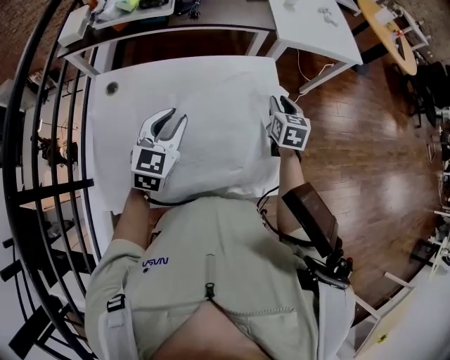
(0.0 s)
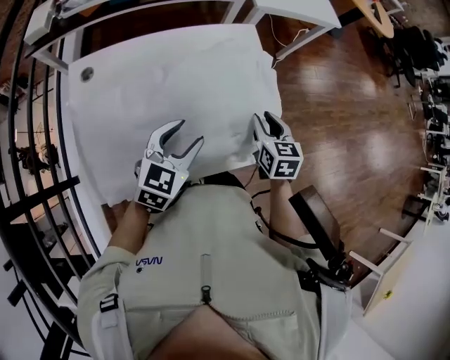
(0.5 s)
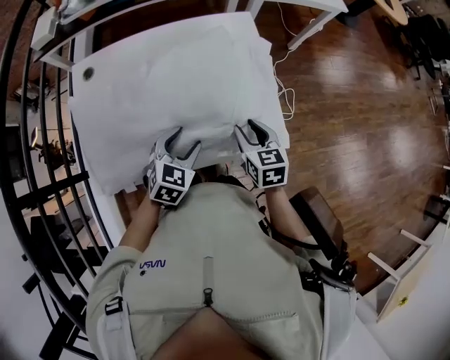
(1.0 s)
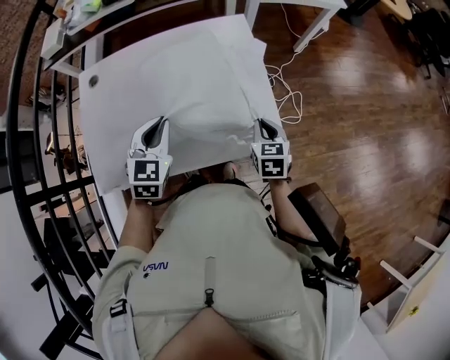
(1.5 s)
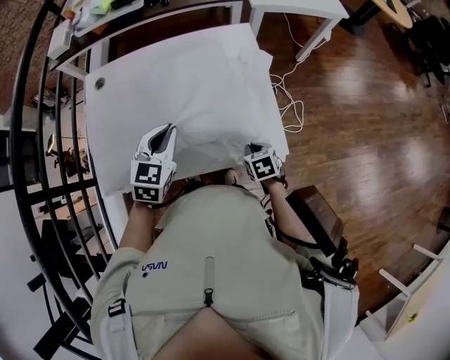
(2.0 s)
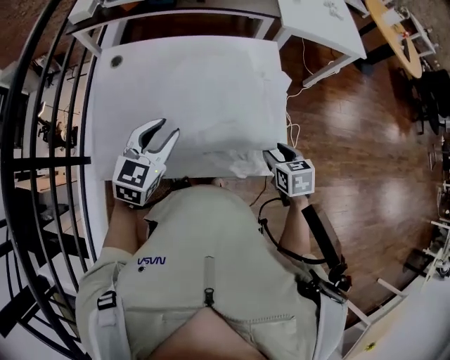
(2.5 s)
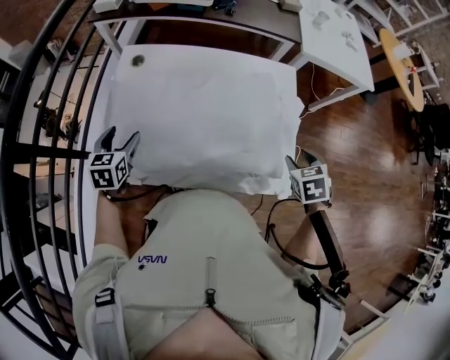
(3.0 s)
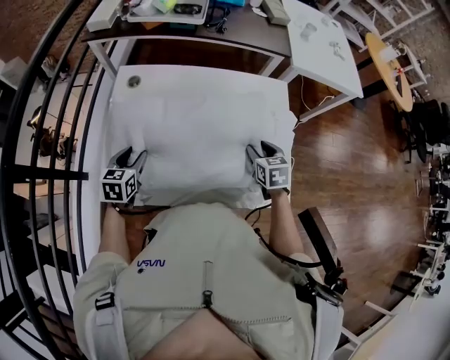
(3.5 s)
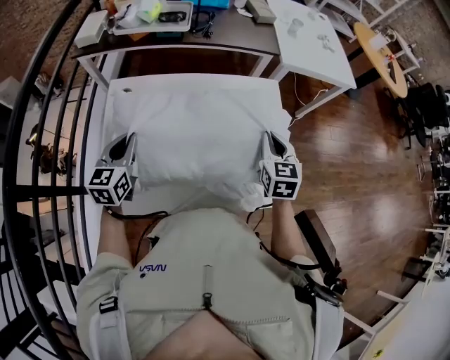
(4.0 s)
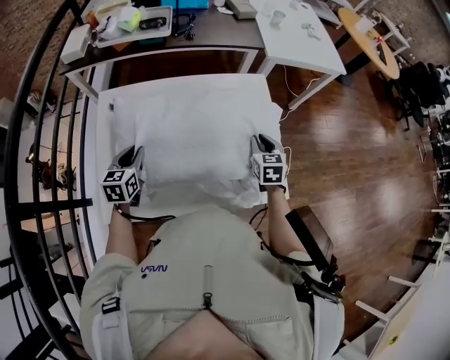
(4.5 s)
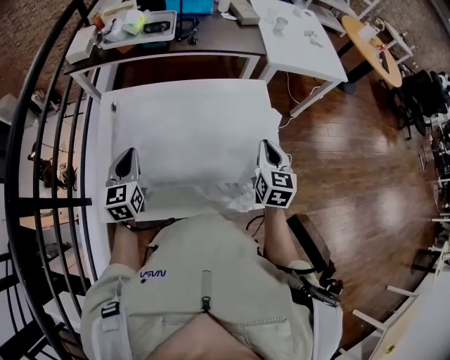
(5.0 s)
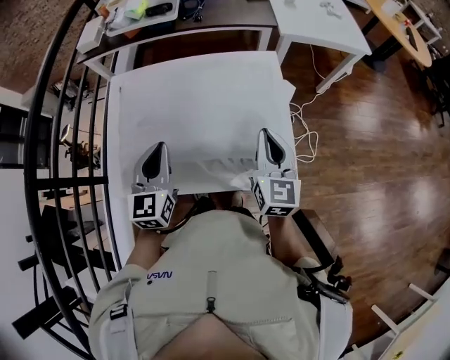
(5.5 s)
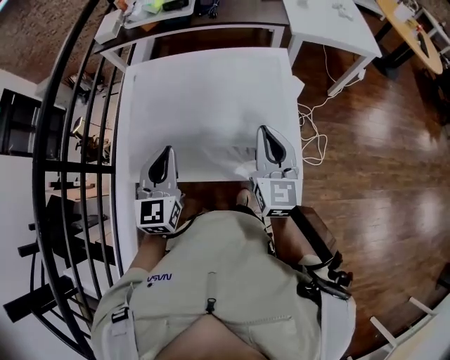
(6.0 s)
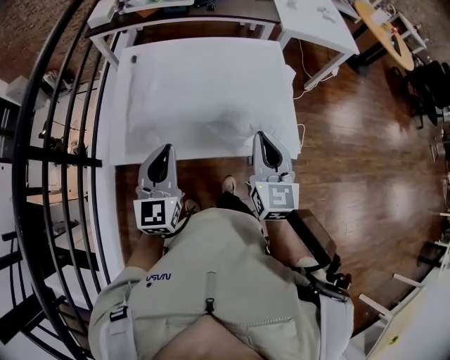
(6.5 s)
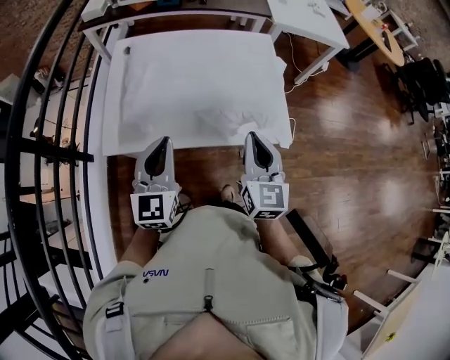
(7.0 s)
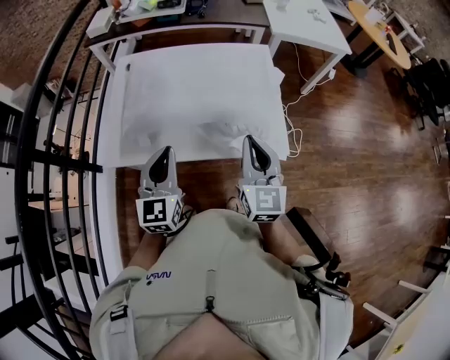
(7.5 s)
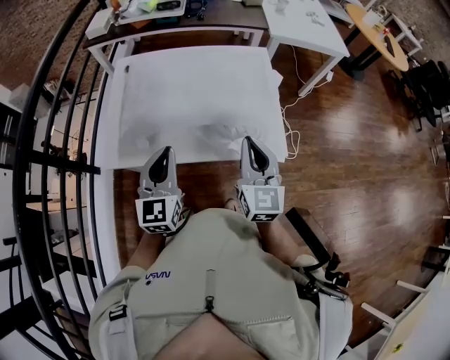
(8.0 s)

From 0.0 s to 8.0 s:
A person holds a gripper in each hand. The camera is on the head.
From 0.0 s to 2.0 s: The right gripper heads backward and downward, covering approximately 35 cm, rotates some 30 degrees, and closes. The left gripper shifts approximately 15 cm backward and to the right, and opens, then closes once more.
From 2.0 s to 4.0 s: The right gripper swings up and down, about 25 cm each way, with 2 reversals, angles its fingers upward, by some 30 degrees, and opens and closes again. The left gripper heads to the left, covering approximately 20 cm, turns by roughly 30 degrees, and opens, then closes again.
From 4.0 s to 6.0 s: The right gripper is displaced backward by roughly 10 cm, moves some 10 cm downward and comes back, and turns by some 30 degrees; the left gripper moves to the right and backward, some 20 cm.
From 6.0 s to 8.0 s: Both grippers travel together backward, roughly 10 cm.

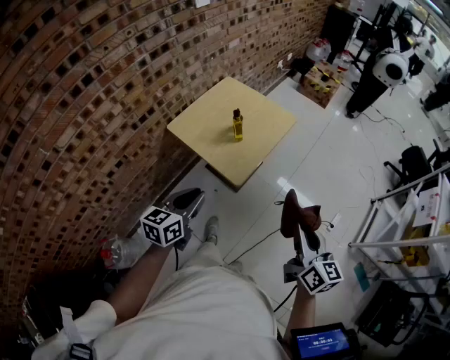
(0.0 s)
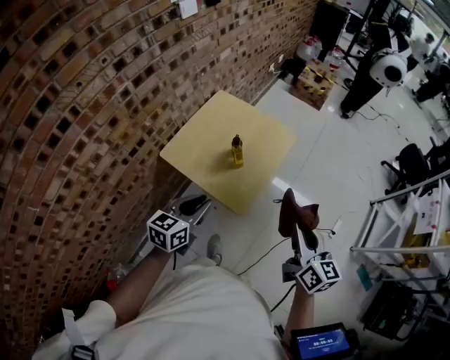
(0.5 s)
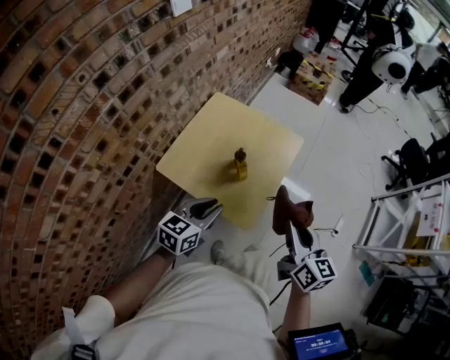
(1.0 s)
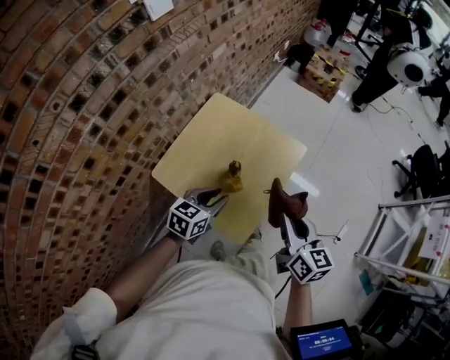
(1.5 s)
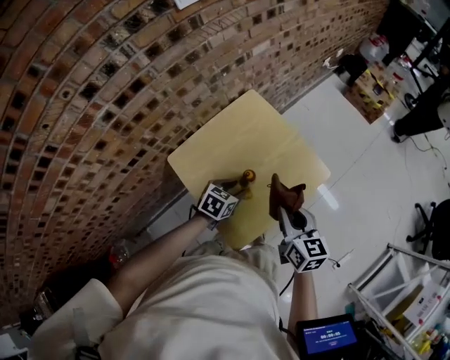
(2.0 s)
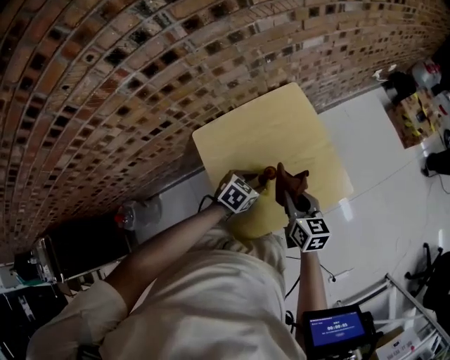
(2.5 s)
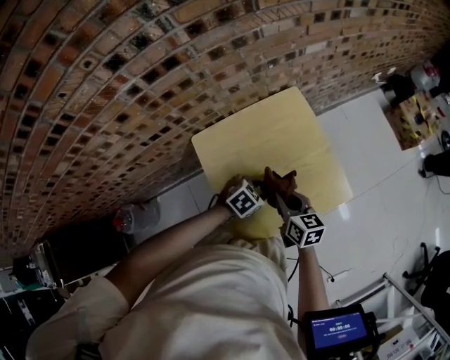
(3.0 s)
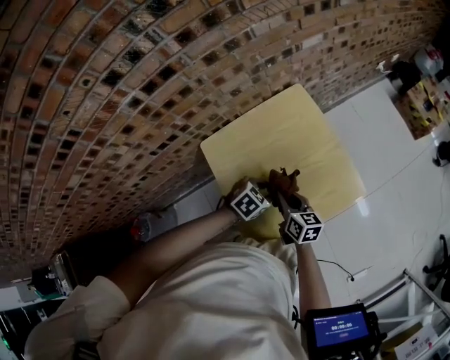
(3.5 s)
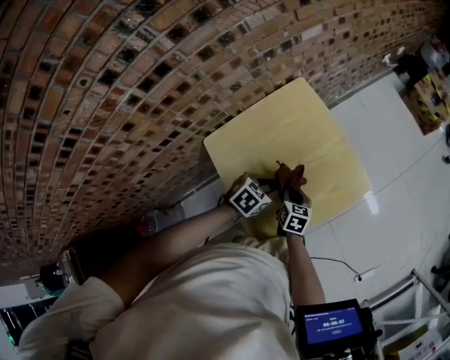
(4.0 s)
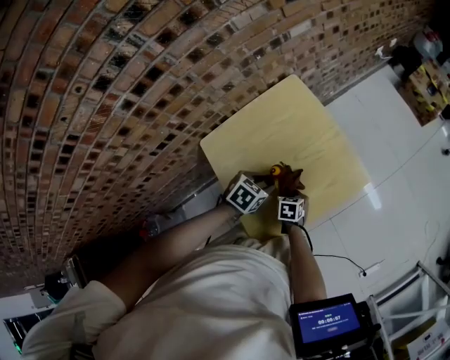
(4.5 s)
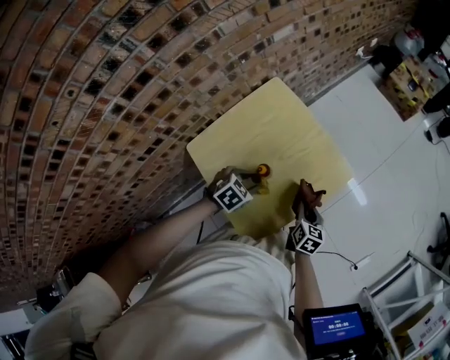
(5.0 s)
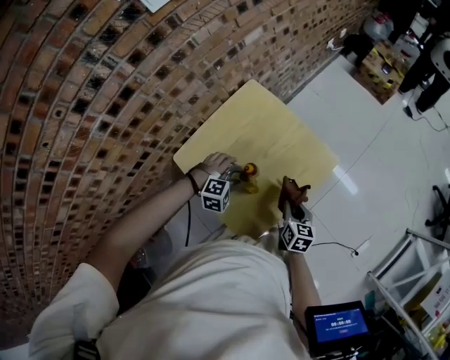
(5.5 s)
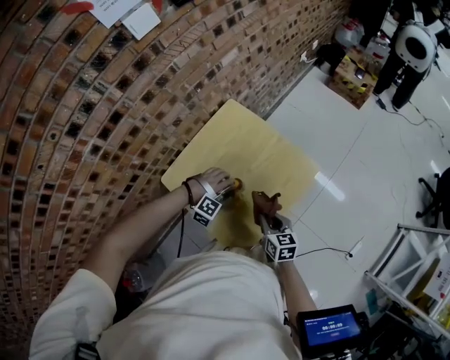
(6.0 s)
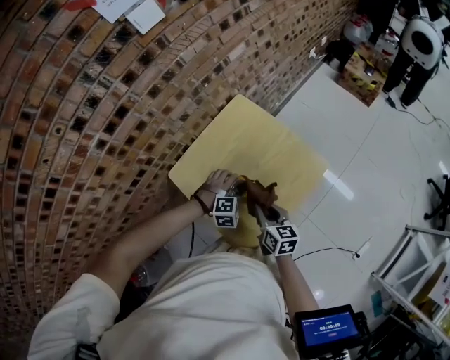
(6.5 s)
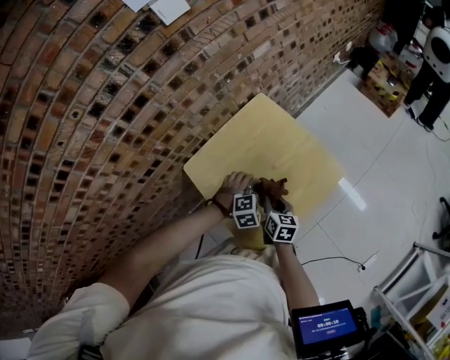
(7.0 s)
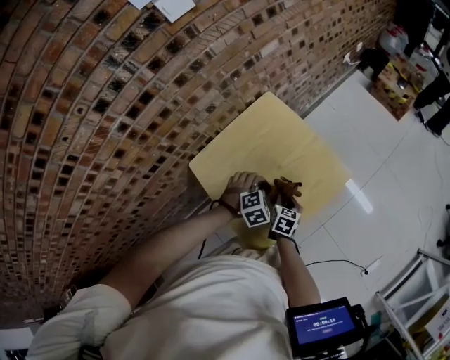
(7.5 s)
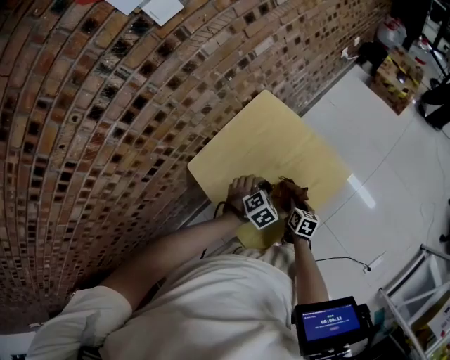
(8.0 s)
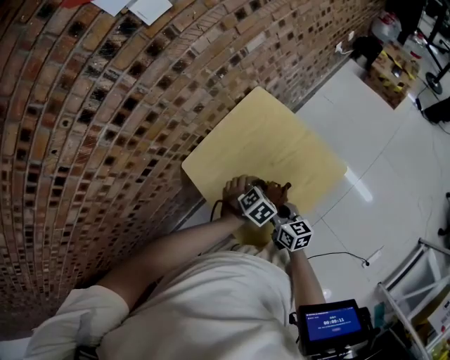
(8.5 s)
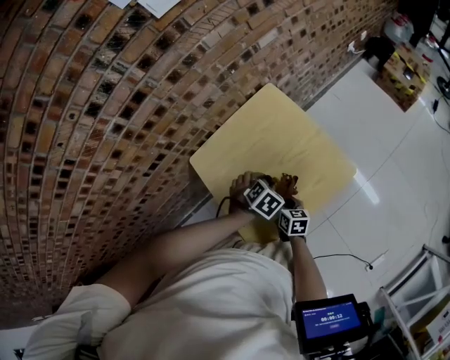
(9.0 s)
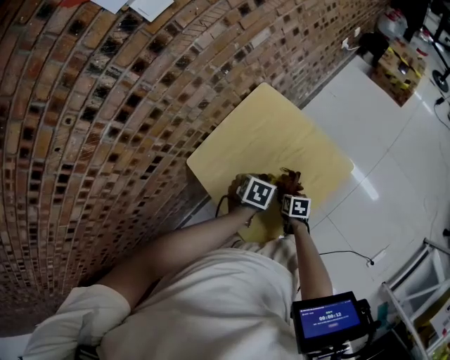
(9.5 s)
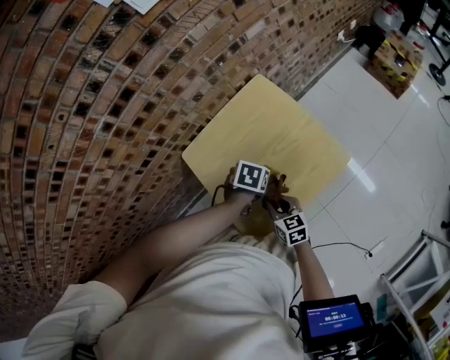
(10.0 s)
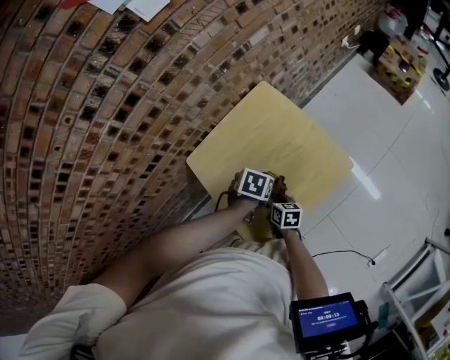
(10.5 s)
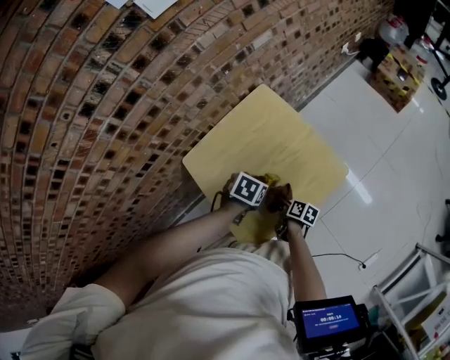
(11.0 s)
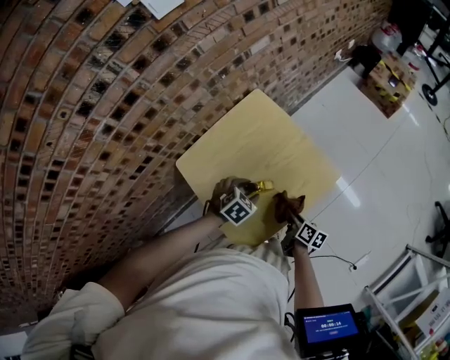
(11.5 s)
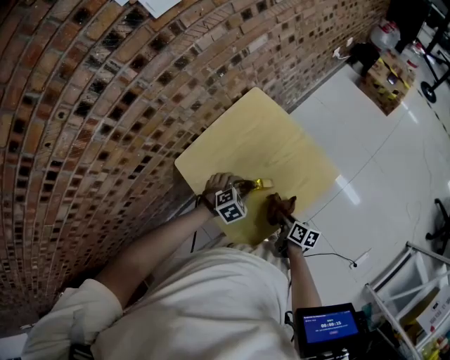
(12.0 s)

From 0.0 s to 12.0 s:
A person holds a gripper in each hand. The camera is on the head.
From 0.0 s to 2.0 s: The pair of grippers is taken forward, about 50 cm. The left gripper heads downward, covering about 20 cm, tilts its fingers roughly 30 degrees downward, and opens up, while the right gripper turns by roughly 20 degrees.
From 2.0 s to 4.0 s: The right gripper goes about 25 cm downward, and swivels approximately 20 degrees.
From 4.0 s to 6.0 s: The left gripper rolls clockwise, seen from behind, by approximately 100 degrees, while the right gripper is displaced upward, to the right and backward by roughly 15 cm.
From 6.0 s to 8.0 s: The right gripper moves downward and forward, approximately 15 cm, while the left gripper shifts roughly 5 cm to the right, and twists some 70 degrees counterclockwise, seen from behind.
From 8.0 s to 10.0 s: The right gripper goes up and down, roughly 15 cm each way, reversing 2 times, and rotates some 30 degrees; the left gripper rolls counterclockwise, seen from behind, by roughly 50 degrees.
From 10.0 s to 12.0 s: The right gripper travels downward by approximately 5 cm, and twists roughly 40 degrees clockwise, seen from behind. Meanwhile the left gripper changes place by roughly 5 cm, and rolls clockwise, seen from behind, by approximately 50 degrees.

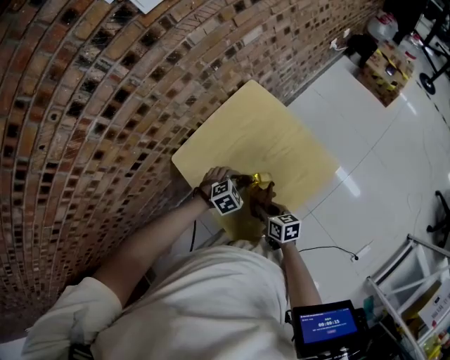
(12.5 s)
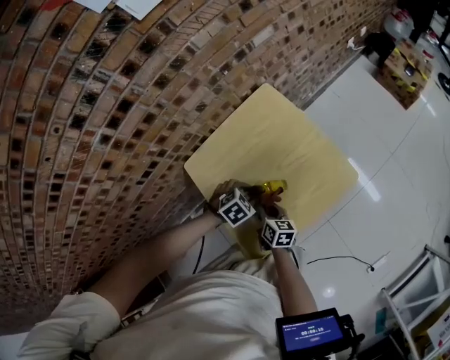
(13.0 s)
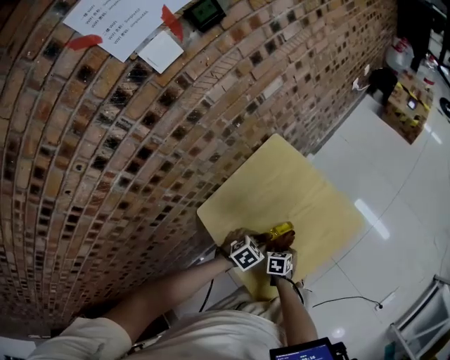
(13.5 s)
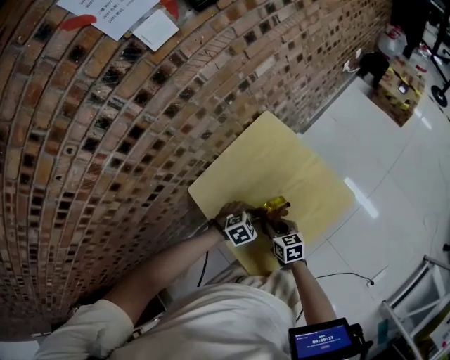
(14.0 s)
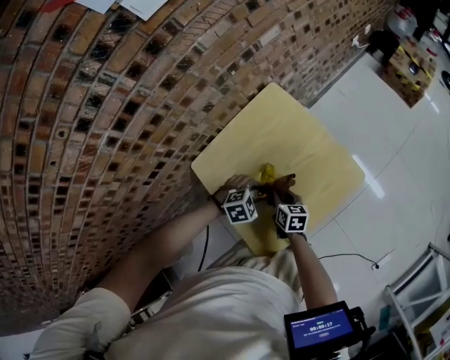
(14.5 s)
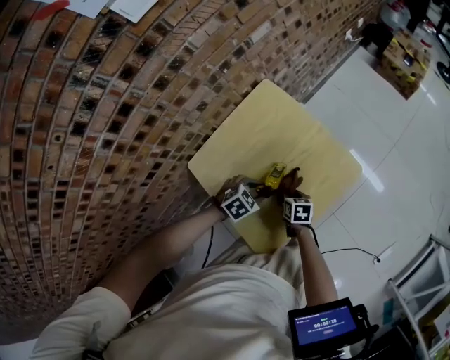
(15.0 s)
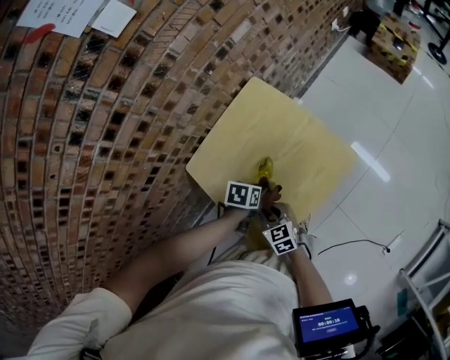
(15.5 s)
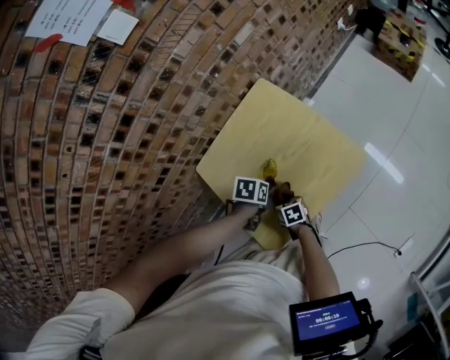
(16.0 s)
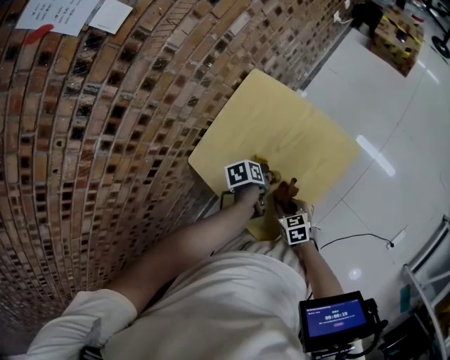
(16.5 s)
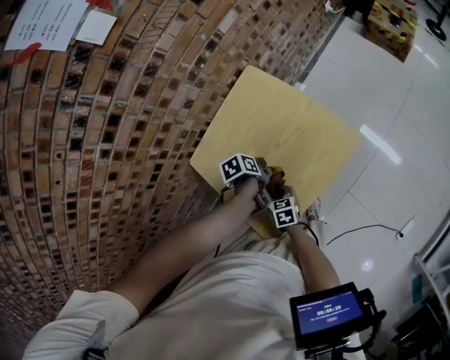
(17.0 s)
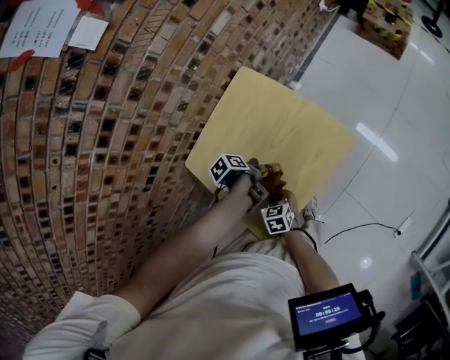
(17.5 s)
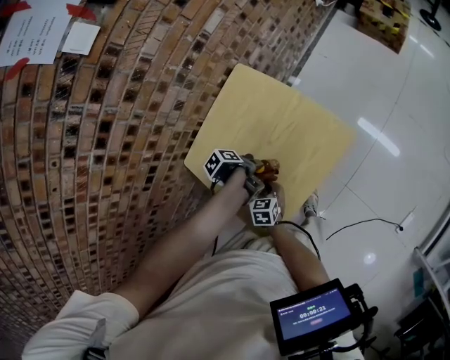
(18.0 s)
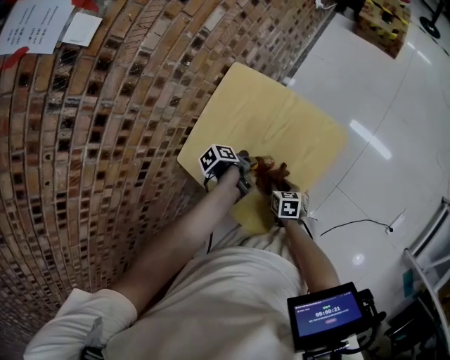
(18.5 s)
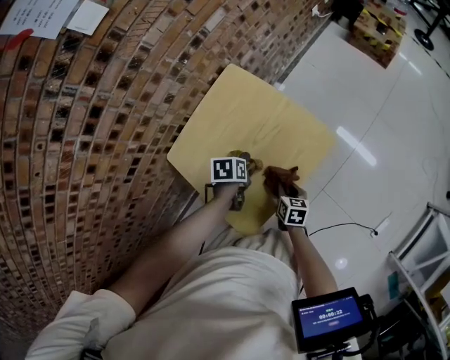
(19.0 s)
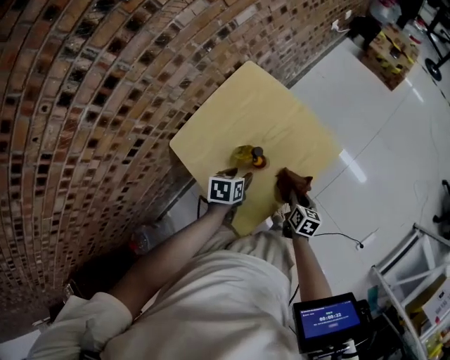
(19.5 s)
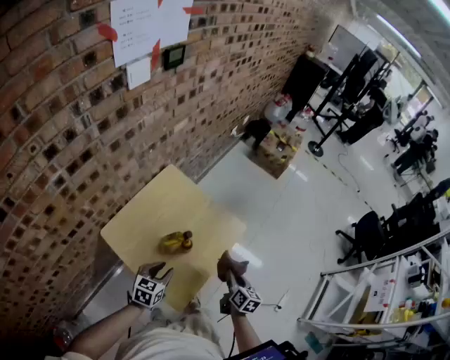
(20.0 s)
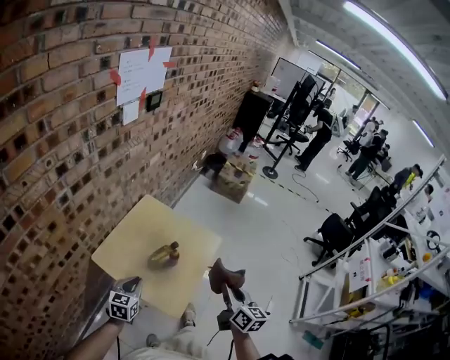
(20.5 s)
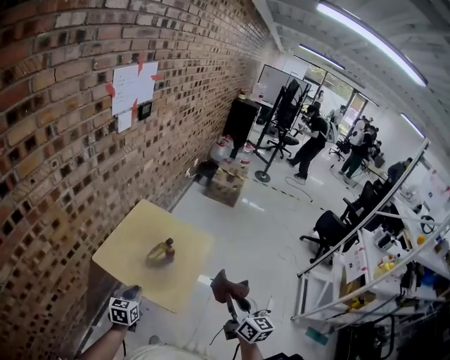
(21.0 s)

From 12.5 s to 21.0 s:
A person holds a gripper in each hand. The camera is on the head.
From 12.5 s to 14.5 s: The right gripper swings up and down, about 10 cm each way, with 2 reversals.
From 14.5 s to 16.5 s: The left gripper twists about 90 degrees counterclockwise, seen from behind; the right gripper moves up and down over approximately 10 cm, changing direction 3 times.
From 16.5 s to 19.0 s: The right gripper shifts by about 10 cm, and changes its angle by about 20 degrees.
From 19.0 s to 21.0 s: The left gripper is displaced backward, upward and to the left by approximately 35 cm, points its fingers approximately 40 degrees further upward, and closes up; the right gripper travels upward and backward by approximately 50 cm, and angles its fingers upward, by about 40 degrees.
